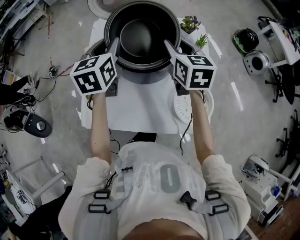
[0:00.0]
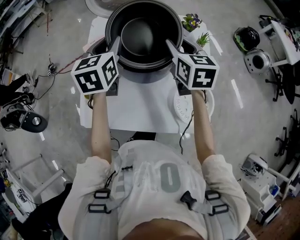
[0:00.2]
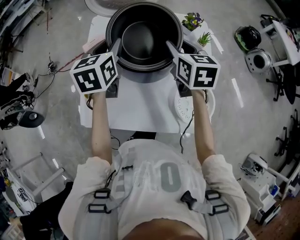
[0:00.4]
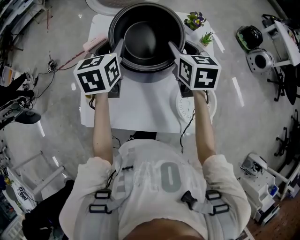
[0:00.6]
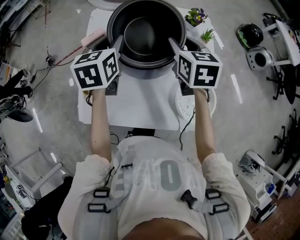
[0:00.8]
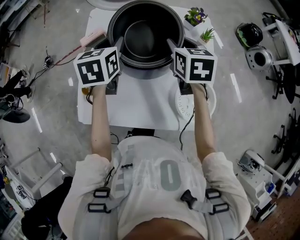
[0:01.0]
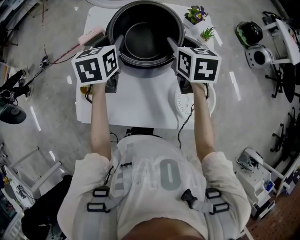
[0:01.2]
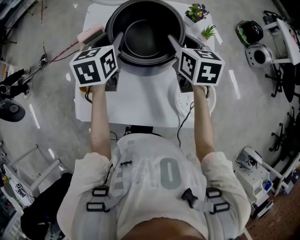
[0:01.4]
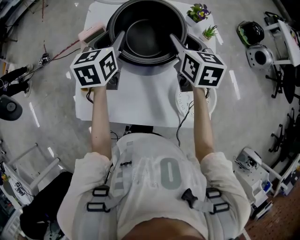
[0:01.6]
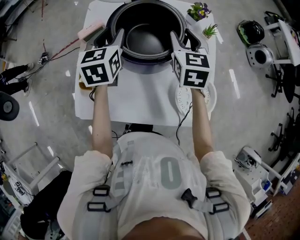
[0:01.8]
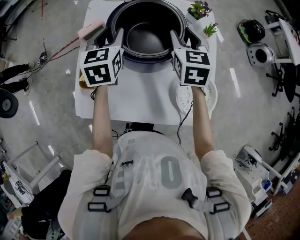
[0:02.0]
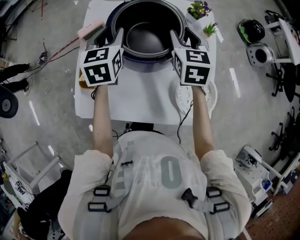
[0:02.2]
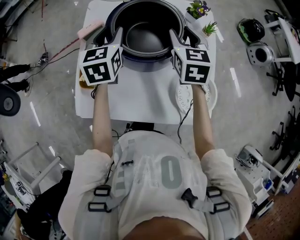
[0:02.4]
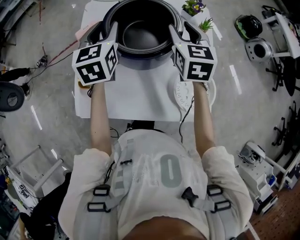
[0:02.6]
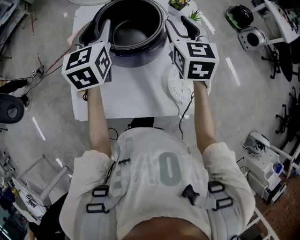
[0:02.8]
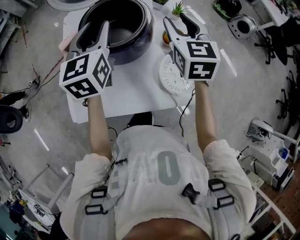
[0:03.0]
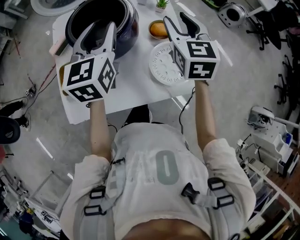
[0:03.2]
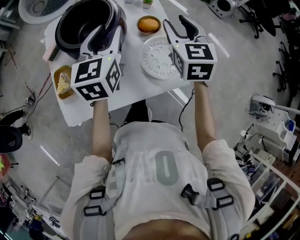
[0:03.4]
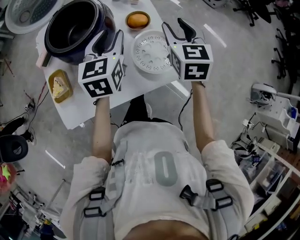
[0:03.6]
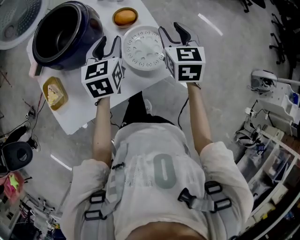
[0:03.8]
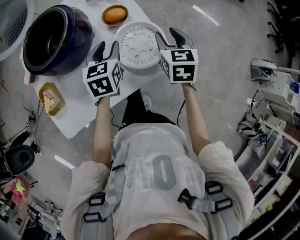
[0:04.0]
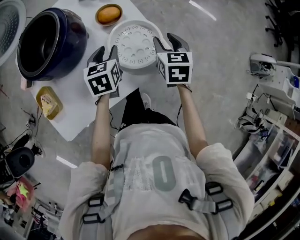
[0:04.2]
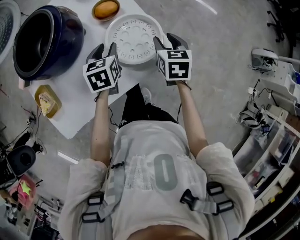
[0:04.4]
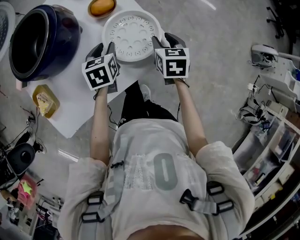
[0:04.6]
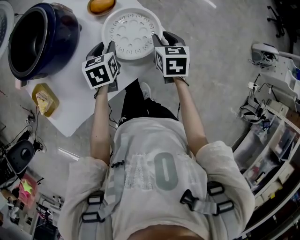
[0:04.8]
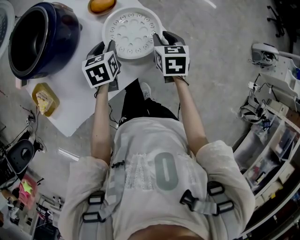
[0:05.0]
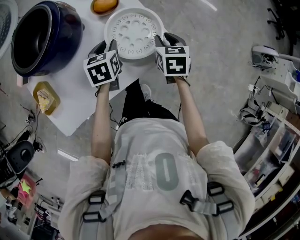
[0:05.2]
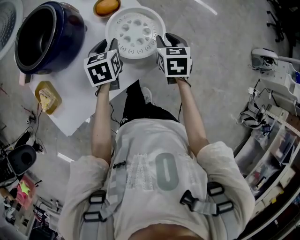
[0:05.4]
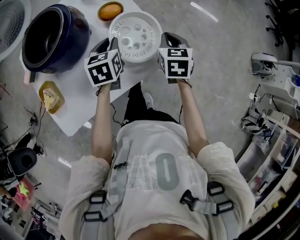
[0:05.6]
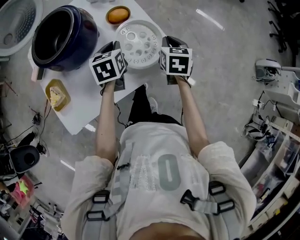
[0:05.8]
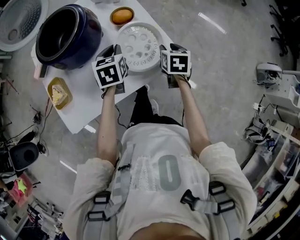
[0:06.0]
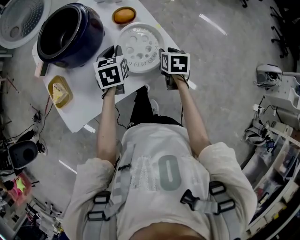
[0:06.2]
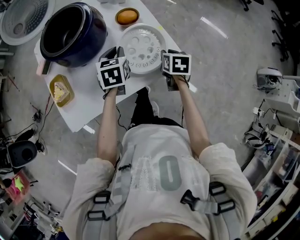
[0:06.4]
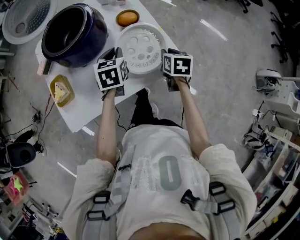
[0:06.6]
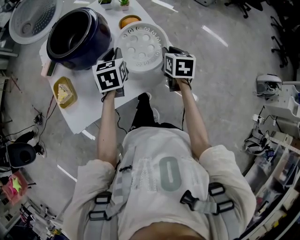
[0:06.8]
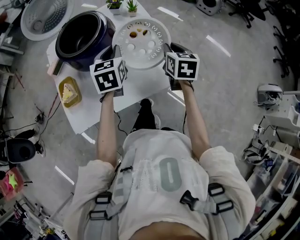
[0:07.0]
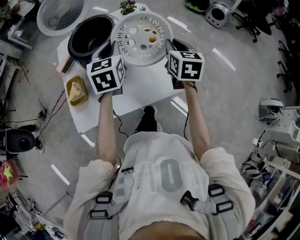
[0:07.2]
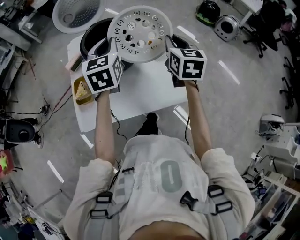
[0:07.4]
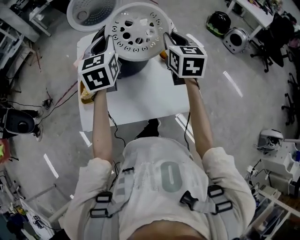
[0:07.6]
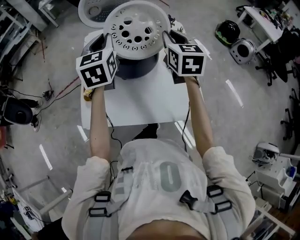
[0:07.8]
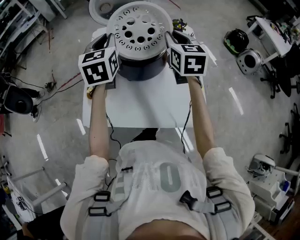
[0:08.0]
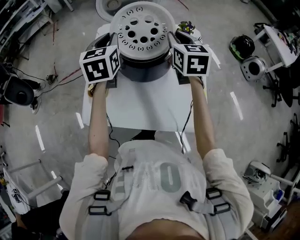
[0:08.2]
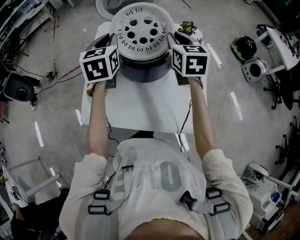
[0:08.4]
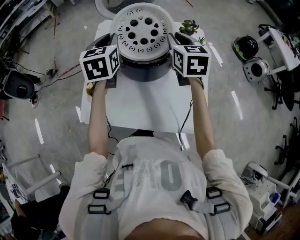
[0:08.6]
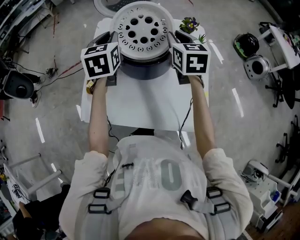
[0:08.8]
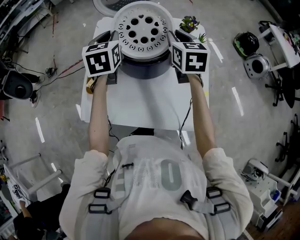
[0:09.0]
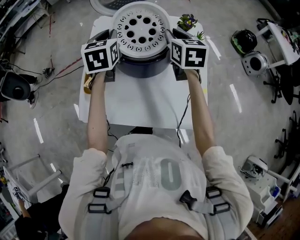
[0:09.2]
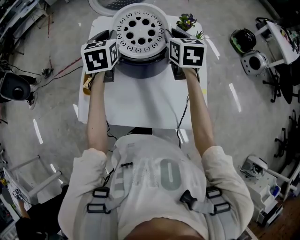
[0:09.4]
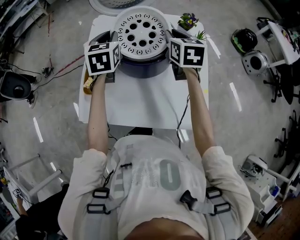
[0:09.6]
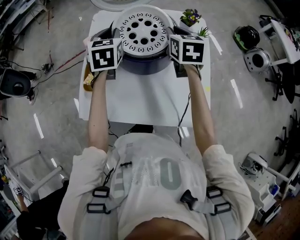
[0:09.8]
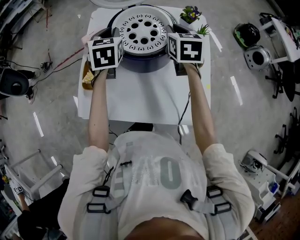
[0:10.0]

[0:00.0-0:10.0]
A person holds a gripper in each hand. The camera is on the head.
0:00.0 to 0:01.4: The two grippers go approximately 5 cm downward.
0:01.4 to 0:02.8: The grippers both shift upward by roughly 5 cm. The right gripper changes its angle by approximately 20 degrees.
0:02.8 to 0:04.2: The right gripper ends up approximately 35 cm from where it was, and changes its angle by approximately 40 degrees; the left gripper shifts by approximately 35 cm, and swivels about 40 degrees.
0:04.2 to 0:05.8: The left gripper travels downward and back again, approximately 5 cm each way, and closes up. The right gripper closes its fingers.
0:05.8 to 0:07.2: The grippers both shift upward and to the left by approximately 15 cm. The right gripper turns by roughly 20 degrees; the left gripper turns by roughly 20 degrees.
0:07.2 to 0:08.6: The left gripper is displaced to the left and forward by some 25 cm, and swivels some 20 degrees; the right gripper heads forward and to the left, covering about 25 cm, and rotates some 30 degrees.
0:08.6 to 0:10.0: Both grippers travel together downward, some 5 cm.

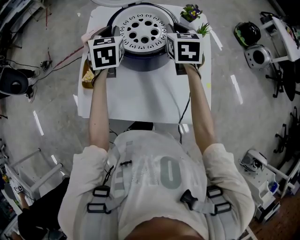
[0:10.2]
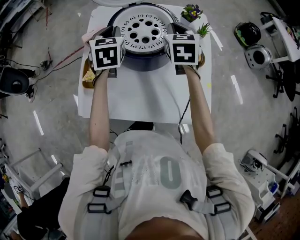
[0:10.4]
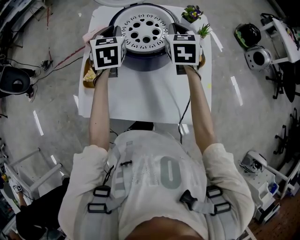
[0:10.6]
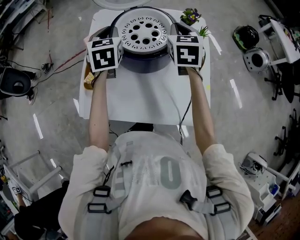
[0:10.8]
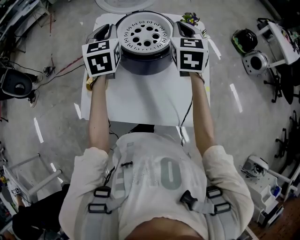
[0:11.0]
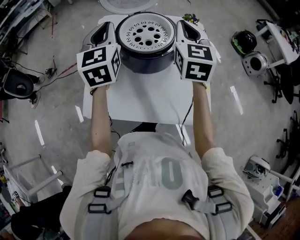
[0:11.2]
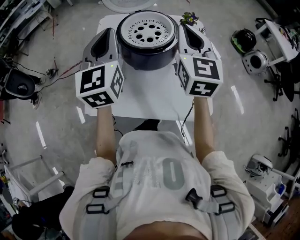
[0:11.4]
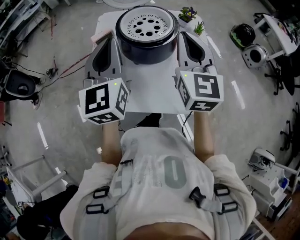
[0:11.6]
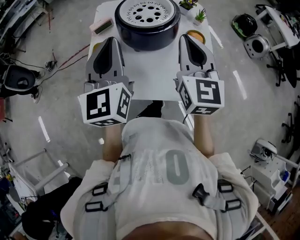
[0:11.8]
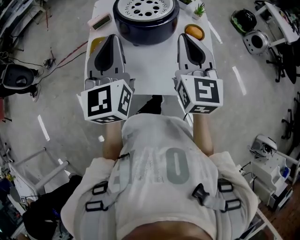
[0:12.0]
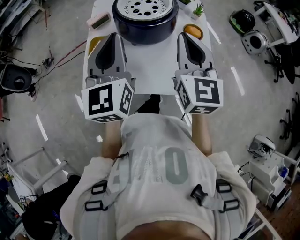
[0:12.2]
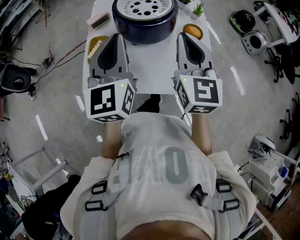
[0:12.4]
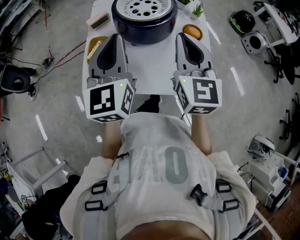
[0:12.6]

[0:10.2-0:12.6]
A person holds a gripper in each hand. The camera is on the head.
0:10.2 to 0:11.4: The grippers both shift upward and backward by about 20 cm. The left gripper swivels roughly 30 degrees. The right gripper changes its angle by approximately 30 degrees.
0:11.4 to 0:12.6: The grippers both shift backward by roughly 10 cm.

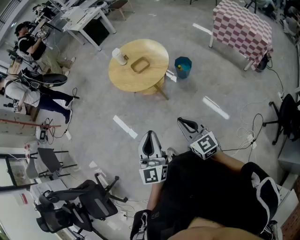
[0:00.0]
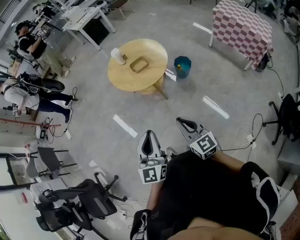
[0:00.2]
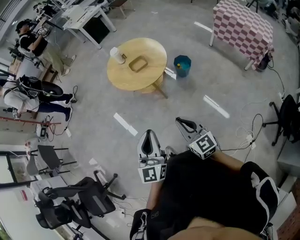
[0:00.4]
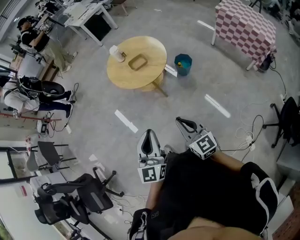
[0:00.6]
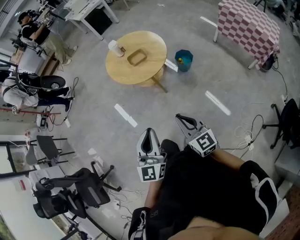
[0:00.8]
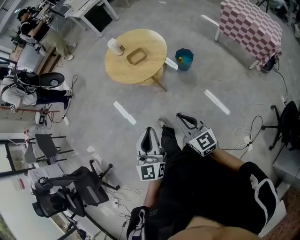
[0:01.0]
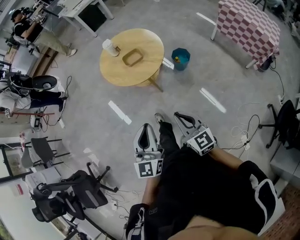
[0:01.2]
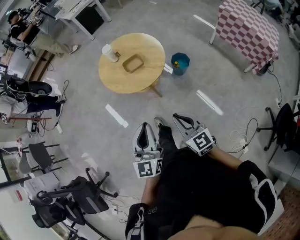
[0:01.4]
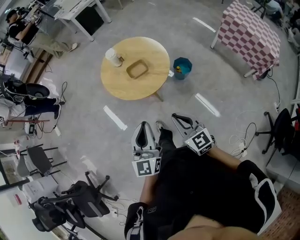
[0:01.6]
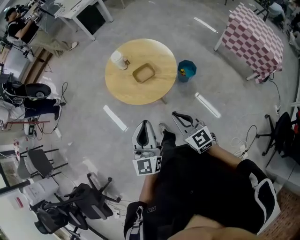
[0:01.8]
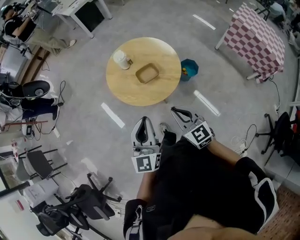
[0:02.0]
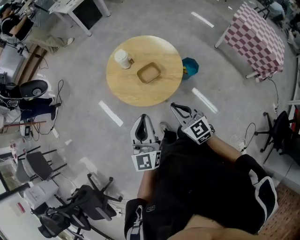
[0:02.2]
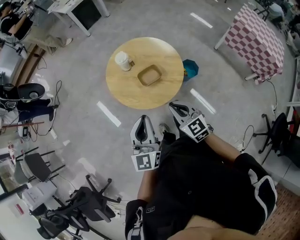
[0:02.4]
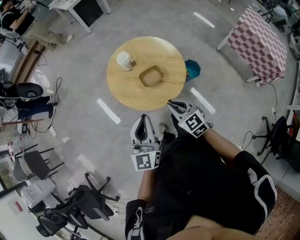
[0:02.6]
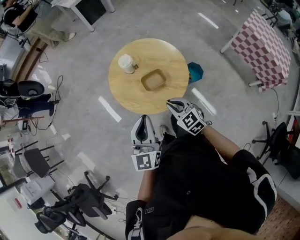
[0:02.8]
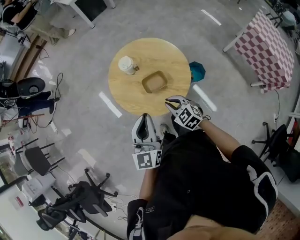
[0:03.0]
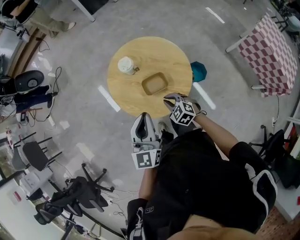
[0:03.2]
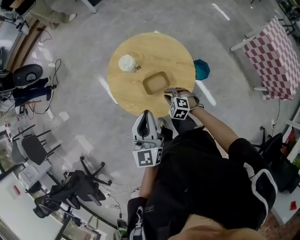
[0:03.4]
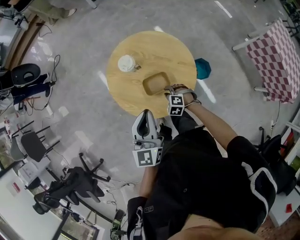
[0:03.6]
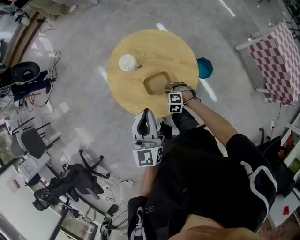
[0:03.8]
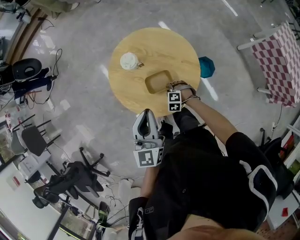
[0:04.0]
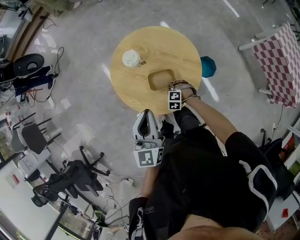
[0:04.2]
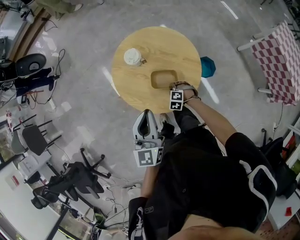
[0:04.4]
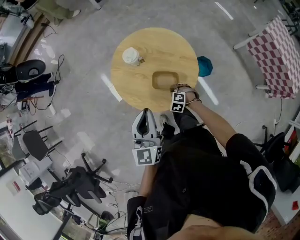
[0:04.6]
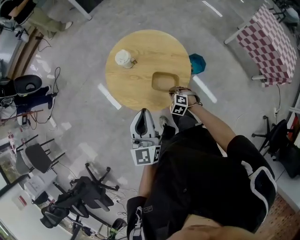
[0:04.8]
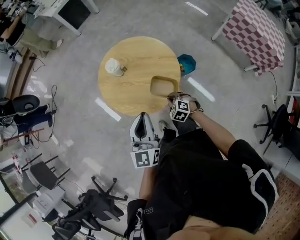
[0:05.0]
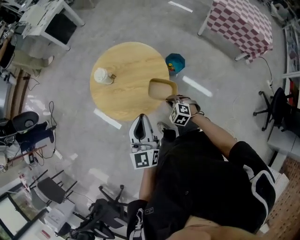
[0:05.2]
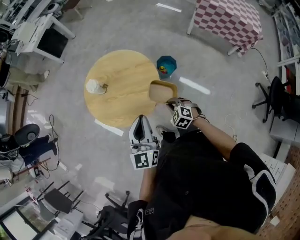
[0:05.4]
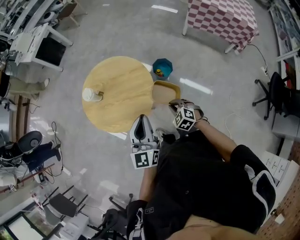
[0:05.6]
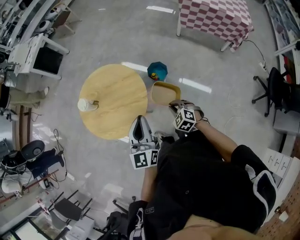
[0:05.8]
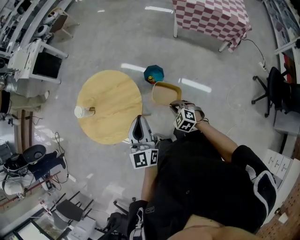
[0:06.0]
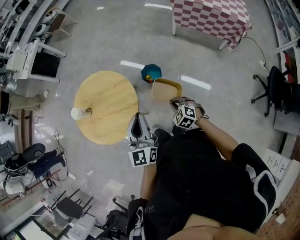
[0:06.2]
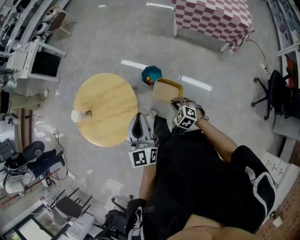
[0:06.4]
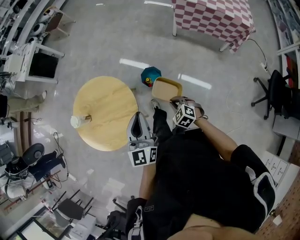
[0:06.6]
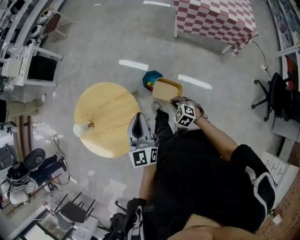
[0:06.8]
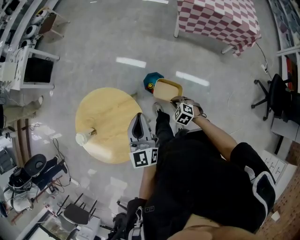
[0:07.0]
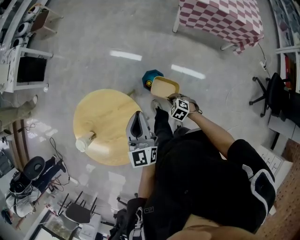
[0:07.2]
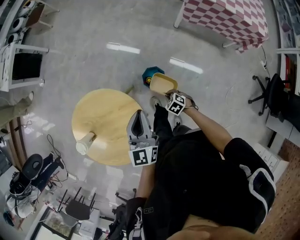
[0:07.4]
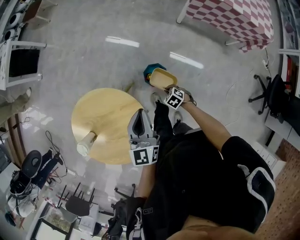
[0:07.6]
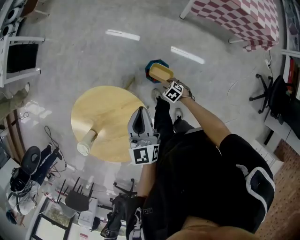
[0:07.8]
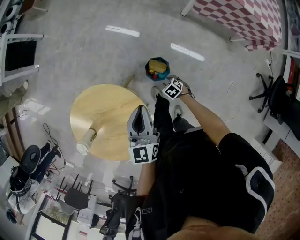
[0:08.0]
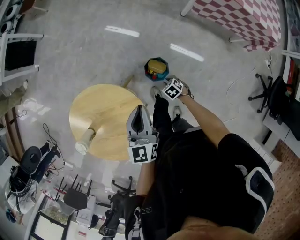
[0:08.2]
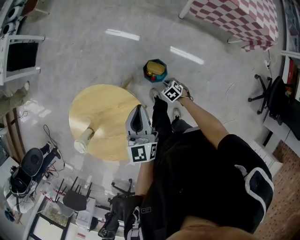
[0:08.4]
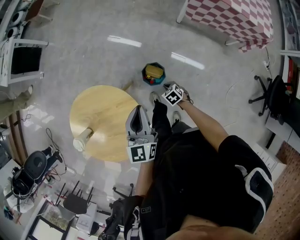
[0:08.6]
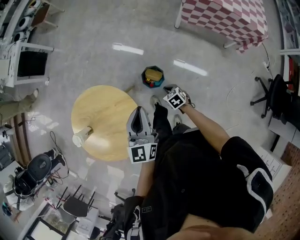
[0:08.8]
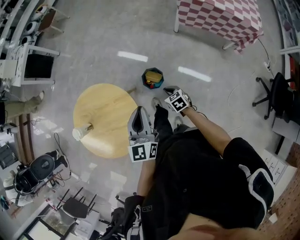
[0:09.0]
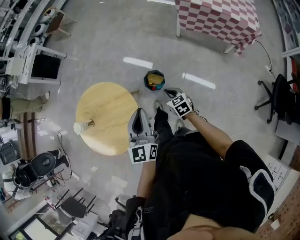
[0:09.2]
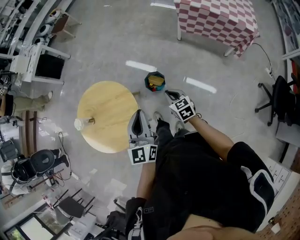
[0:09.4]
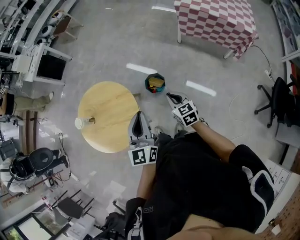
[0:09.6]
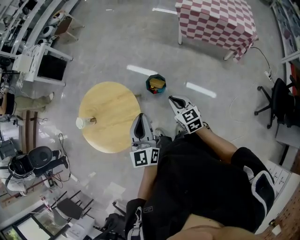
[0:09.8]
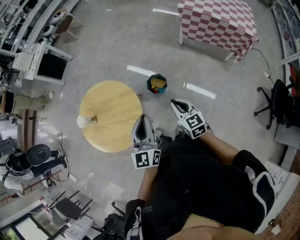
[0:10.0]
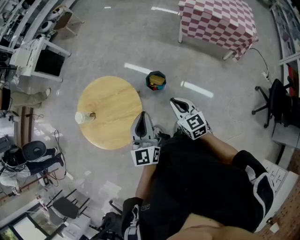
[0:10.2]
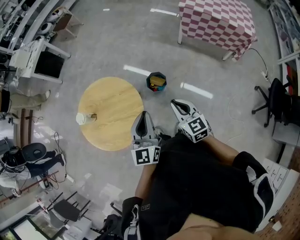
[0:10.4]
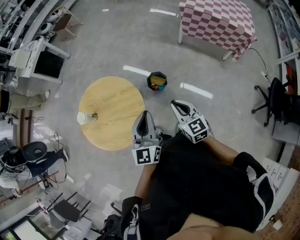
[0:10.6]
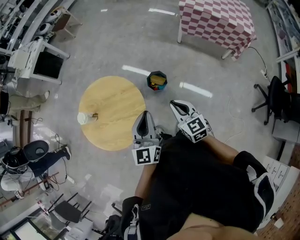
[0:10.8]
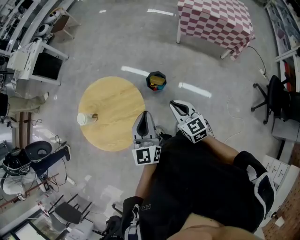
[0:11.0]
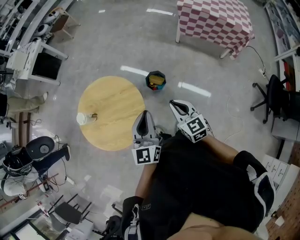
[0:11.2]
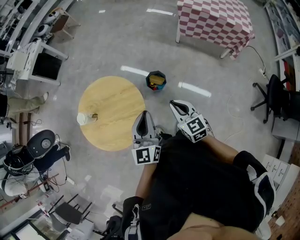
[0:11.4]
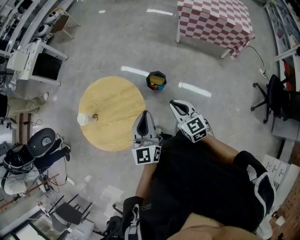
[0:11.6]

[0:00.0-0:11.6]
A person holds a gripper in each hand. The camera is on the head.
0:00.0 to 0:01.4: Both grippers move forward and to the right, roughly 15 cm.
0:01.4 to 0:02.8: Both grippers move forward, some 35 cm. The right gripper swivels about 30 degrees.
0:02.8 to 0:04.4: The right gripper goes roughly 30 cm downward, and angles its fingers downward, by some 40 degrees, while the left gripper moves some 10 cm.
0:04.4 to 0:05.8: The right gripper changes place by approximately 40 cm, and rolls clockwise, seen from behind, by some 50 degrees, while the left gripper shifts by approximately 25 cm, and changes its angle by about 30 degrees.
0:05.8 to 0:07.2: The left gripper goes about 30 cm forward and to the right. Meanwhile the right gripper is displaced forward, downward and to the right by about 30 cm.
0:07.2 to 0:08.8: The left gripper reaches some 10 cm forward, then returns. The right gripper reaches some 15 cm downward, then returns, rotates some 20 degrees, and opens and closes again.
0:08.8 to 0:10.2: The left gripper moves backward, approximately 20 cm. The right gripper is displaced upward and backward by about 35 cm, and tilts its fingers some 40 degrees upward.
0:10.2 to 0:11.6: The grippers make only small movements.
